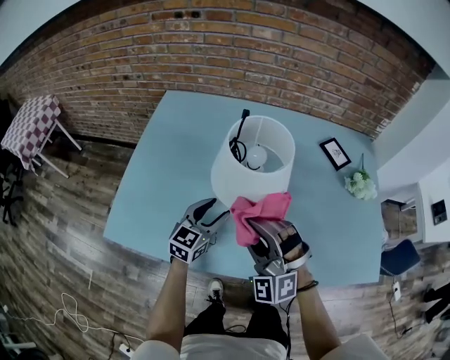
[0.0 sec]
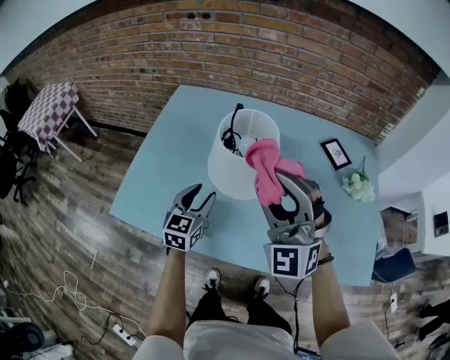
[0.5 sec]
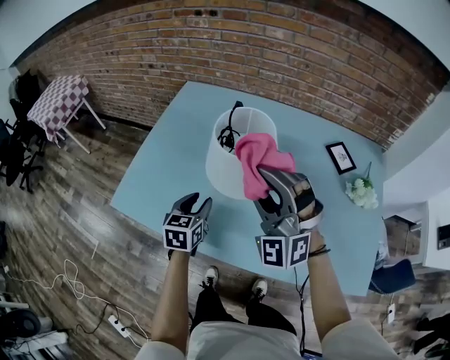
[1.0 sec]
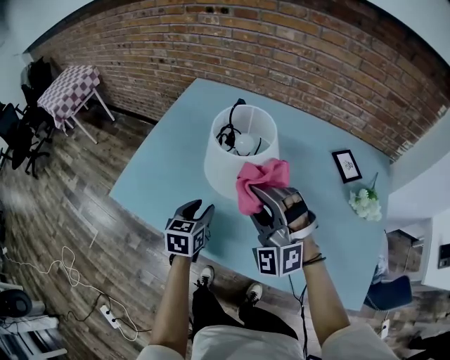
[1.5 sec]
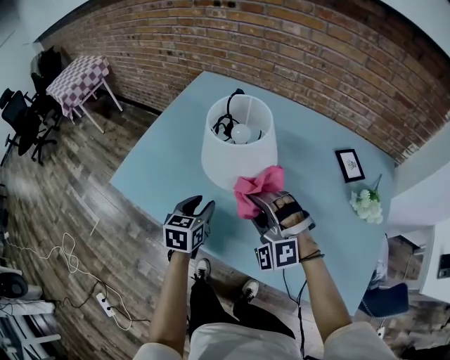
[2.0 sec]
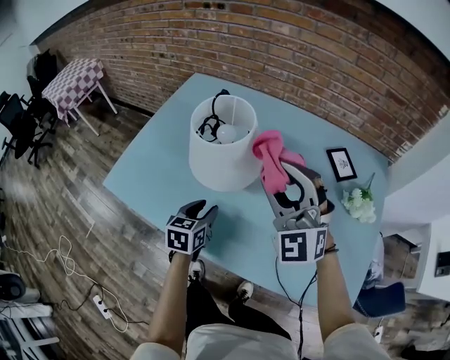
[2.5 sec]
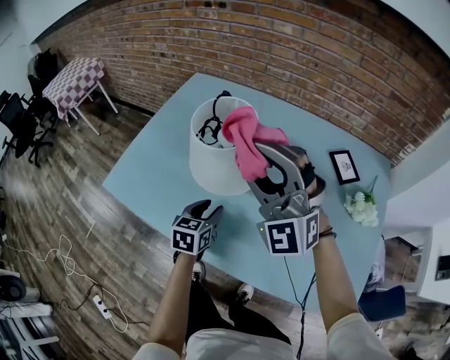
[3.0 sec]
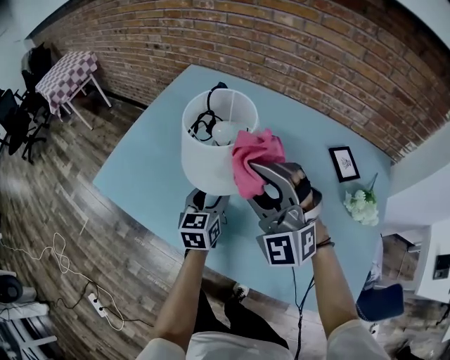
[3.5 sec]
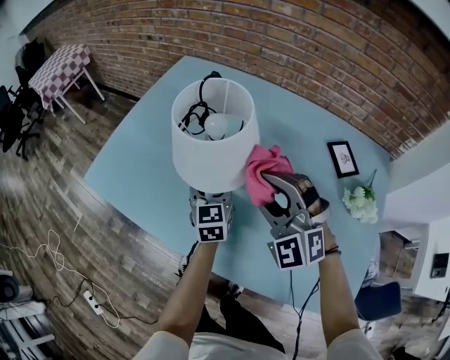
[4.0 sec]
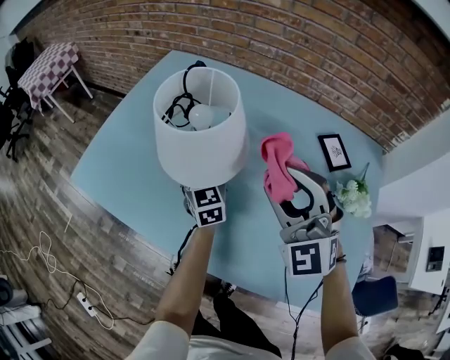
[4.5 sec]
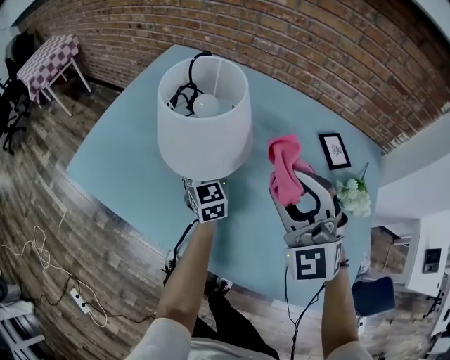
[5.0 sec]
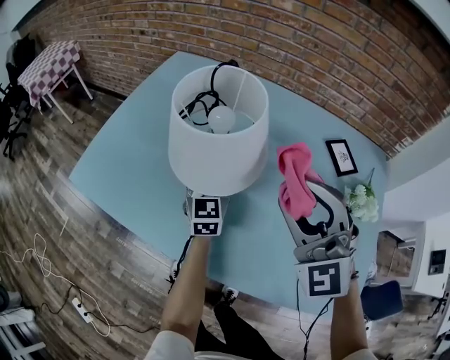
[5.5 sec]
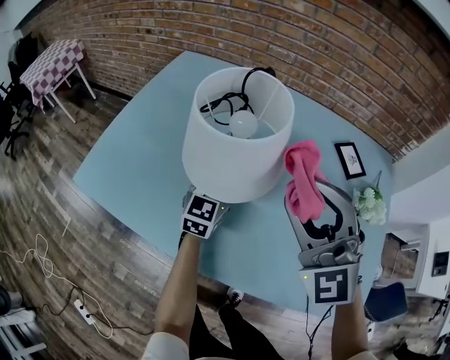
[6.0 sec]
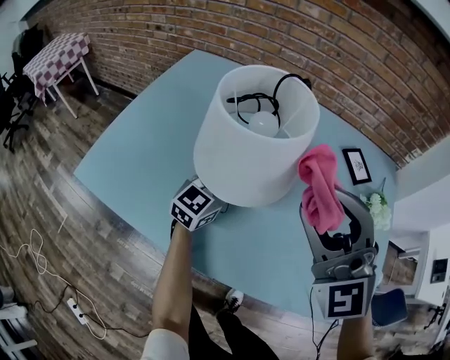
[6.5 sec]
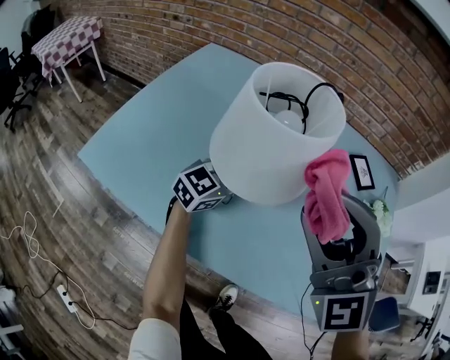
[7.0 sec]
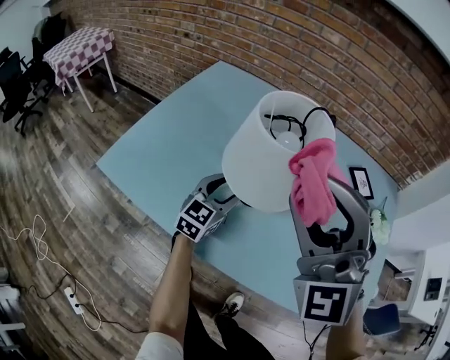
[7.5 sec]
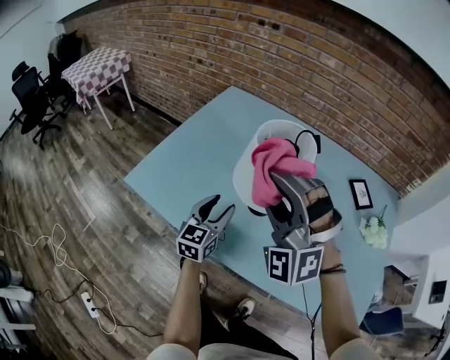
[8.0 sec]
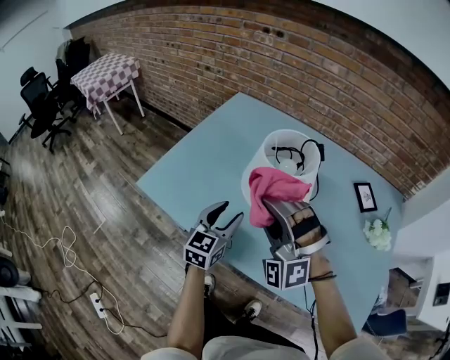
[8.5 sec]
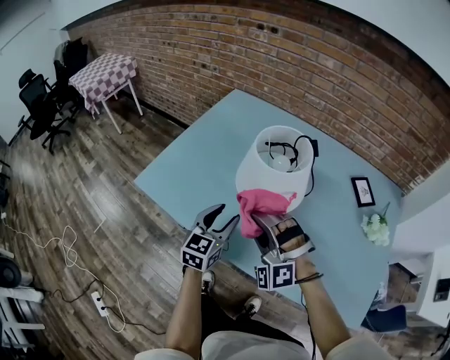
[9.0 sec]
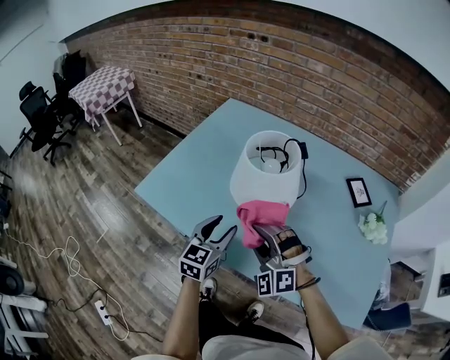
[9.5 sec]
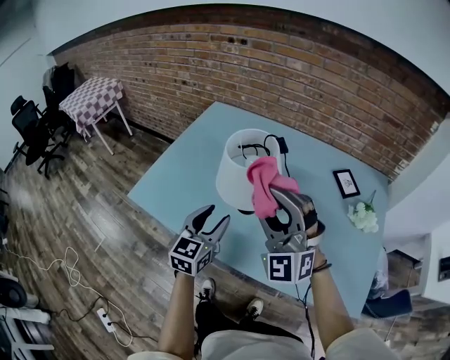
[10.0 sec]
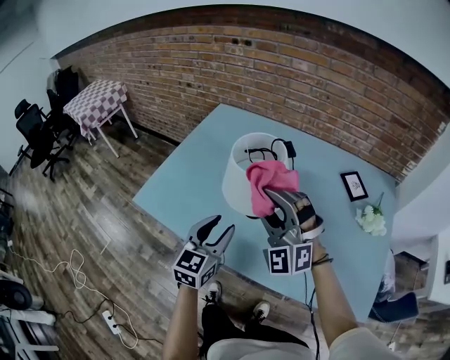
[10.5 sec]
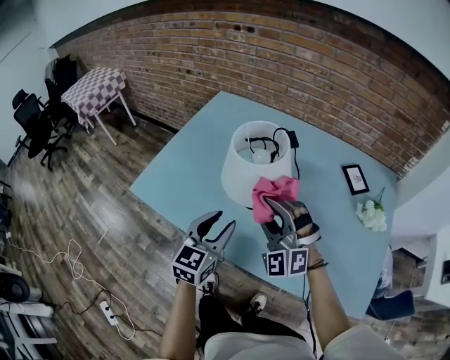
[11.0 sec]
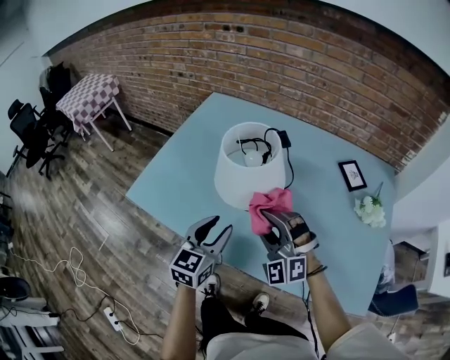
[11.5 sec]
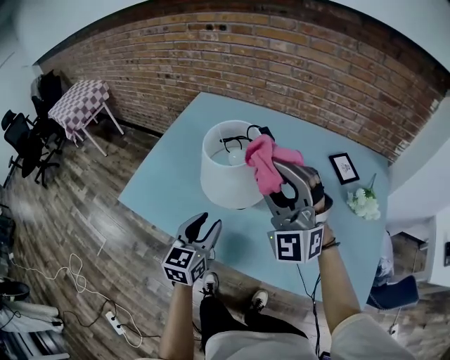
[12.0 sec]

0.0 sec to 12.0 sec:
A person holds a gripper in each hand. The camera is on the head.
0.0 sec to 2.0 sec: The right gripper reaches roughly 15 cm upward, then returns, and turns by roughly 20 degrees, while the left gripper shifts by roughly 5 cm, and turns by about 40 degrees.
2.0 sec to 4.0 sec: The right gripper goes approximately 5 cm to the right, and goes upward and returns, about 20 cm each way. Meanwhile the left gripper shifts about 15 cm to the right and forward, and swivels some 20 degrees.
4.0 sec to 6.0 sec: The left gripper turns by approximately 30 degrees. The right gripper shifts approximately 5 cm upward.
6.0 sec to 8.0 sec: The left gripper moves to the left and backward, about 15 cm. Meanwhile the right gripper heads to the left, covering about 15 cm, and changes its angle by some 30 degrees.
8.0 sec to 10.0 sec: The right gripper travels to the right by about 5 cm, goes downward and returns, approximately 15 cm each way, and changes its angle by about 20 degrees; the left gripper heads upward and backward, covering about 10 cm.
10.0 sec to 12.0 sec: The right gripper goes approximately 5 cm forward, and reaches about 15 cm downward, then returns.

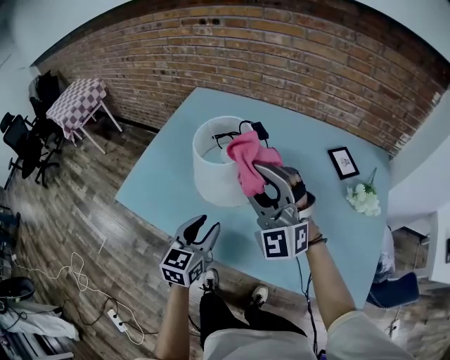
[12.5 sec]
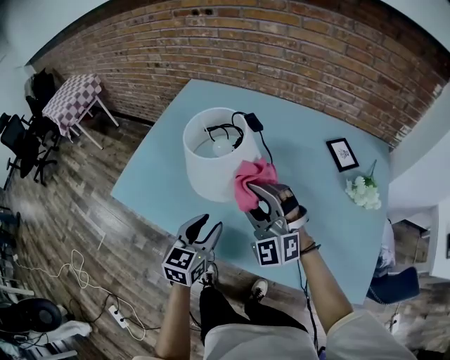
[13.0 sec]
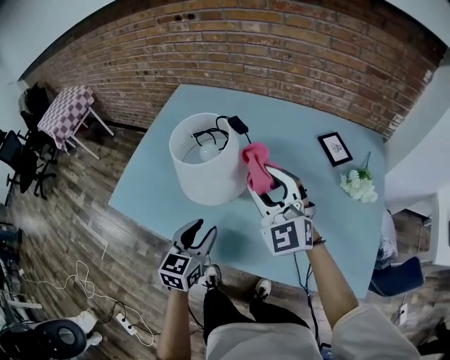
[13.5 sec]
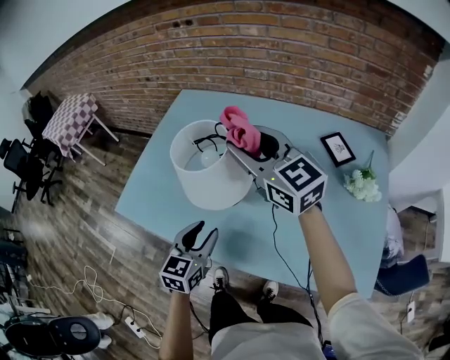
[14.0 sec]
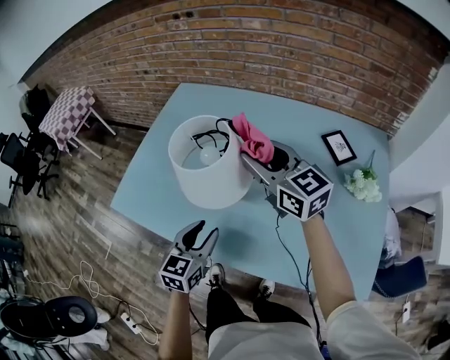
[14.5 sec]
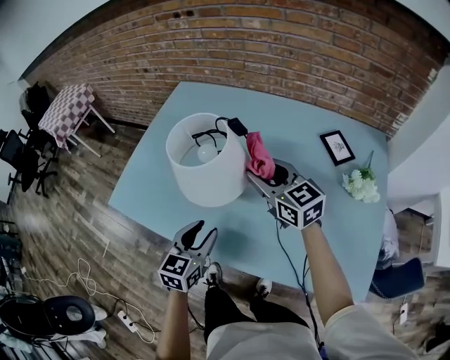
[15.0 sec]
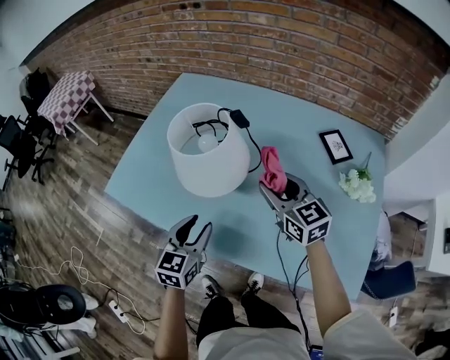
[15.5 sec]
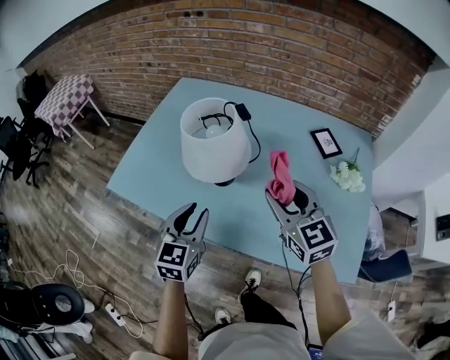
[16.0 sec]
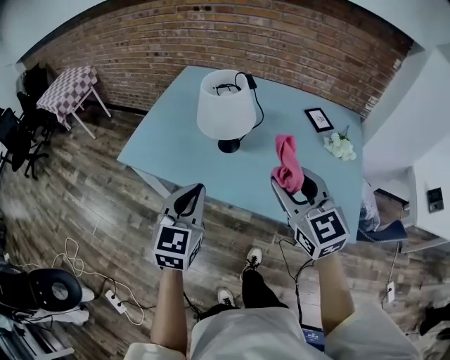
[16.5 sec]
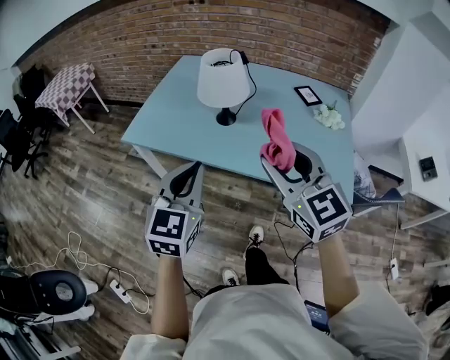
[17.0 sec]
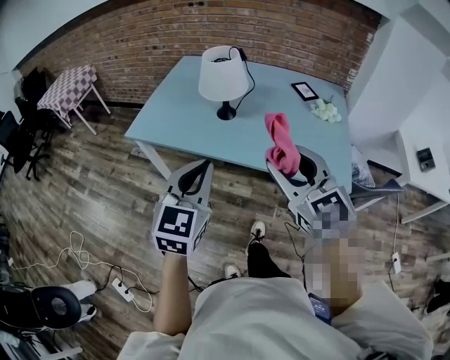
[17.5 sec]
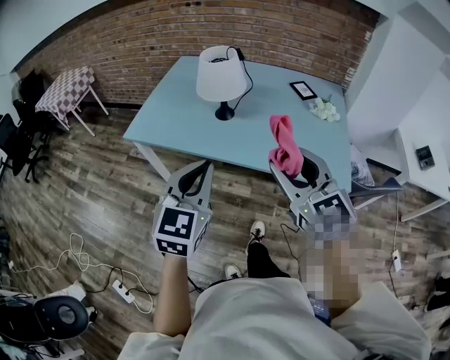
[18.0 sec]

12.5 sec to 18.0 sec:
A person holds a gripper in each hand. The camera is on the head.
12.5 sec to 14.5 sec: The right gripper moves up and down over some 15 cm, changing direction 2 times, and rotates around the line of its fingers by some 60 degrees, clockwise from behind.
14.5 sec to 16.0 sec: The right gripper is displaced backward by some 15 cm, and swivels roughly 20 degrees. The left gripper is displaced upward by approximately 5 cm.
16.0 sec to 18.0 sec: The right gripper shifts roughly 35 cm backward. The left gripper shifts some 30 cm backward and upward, and closes.

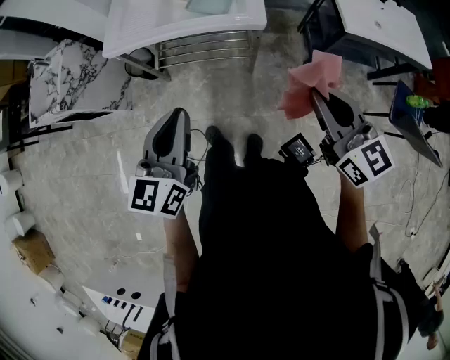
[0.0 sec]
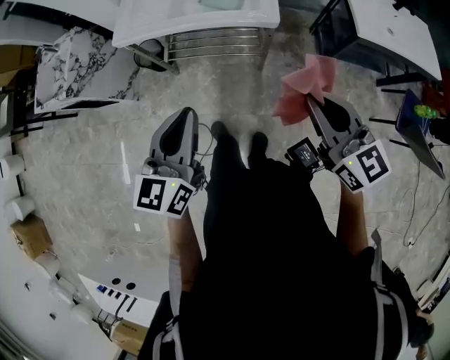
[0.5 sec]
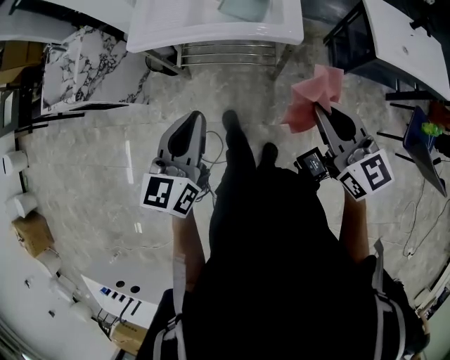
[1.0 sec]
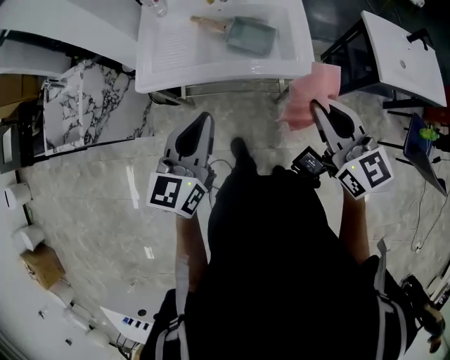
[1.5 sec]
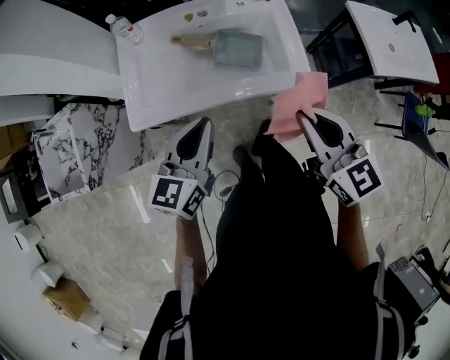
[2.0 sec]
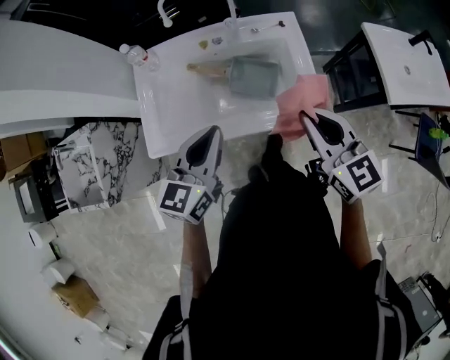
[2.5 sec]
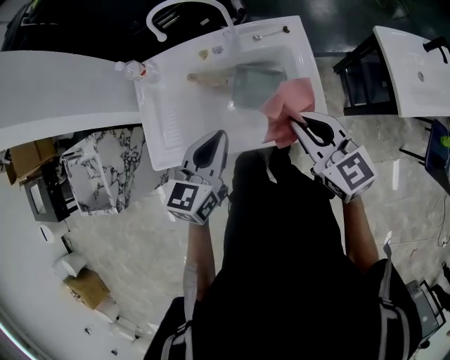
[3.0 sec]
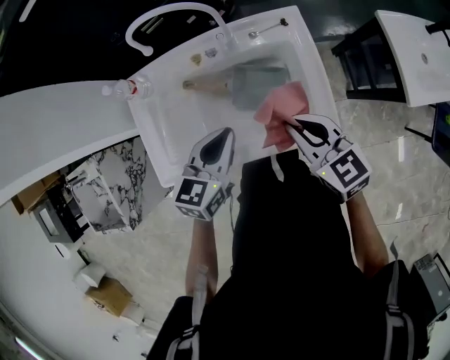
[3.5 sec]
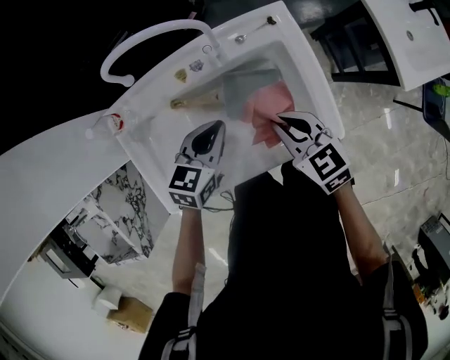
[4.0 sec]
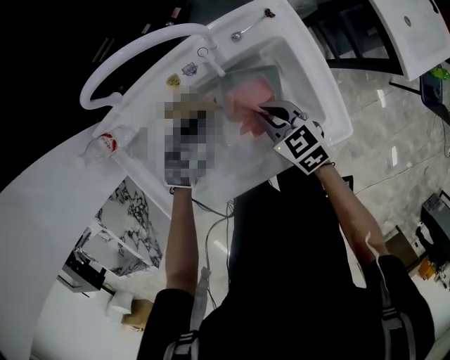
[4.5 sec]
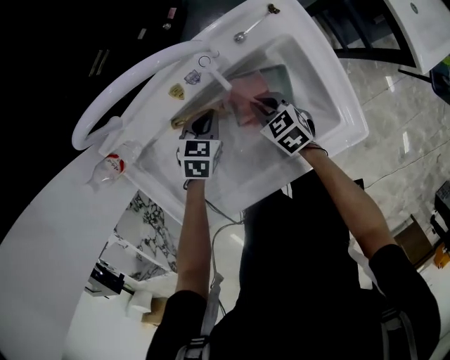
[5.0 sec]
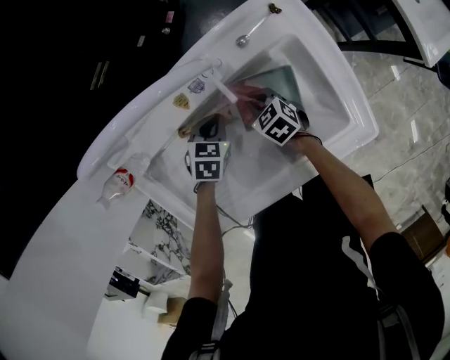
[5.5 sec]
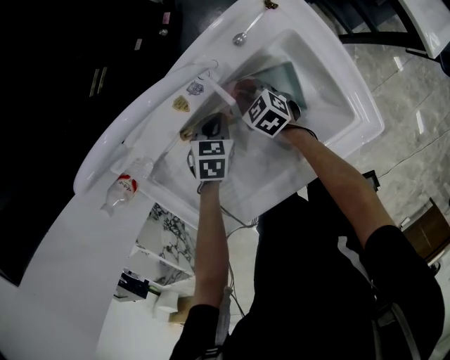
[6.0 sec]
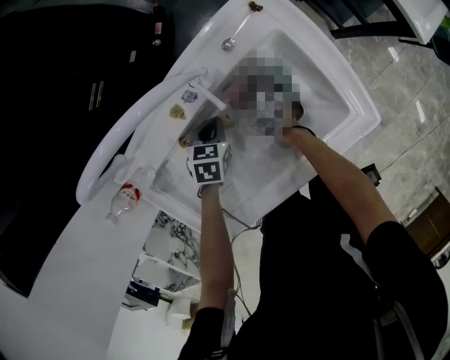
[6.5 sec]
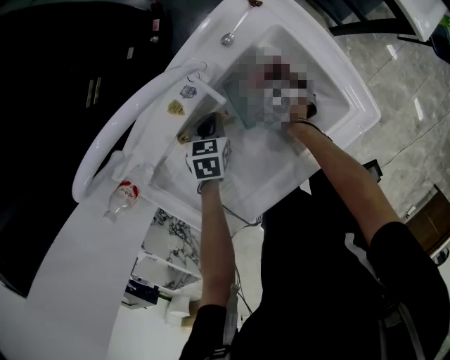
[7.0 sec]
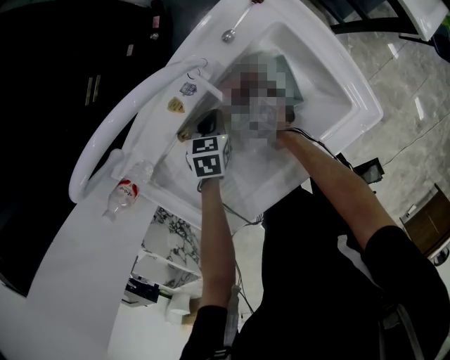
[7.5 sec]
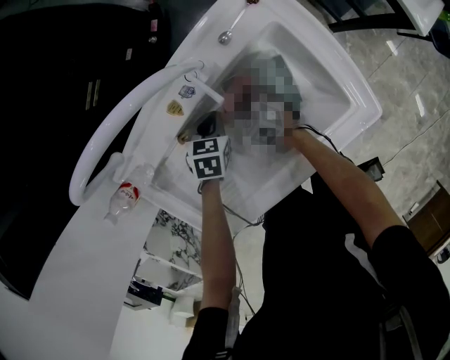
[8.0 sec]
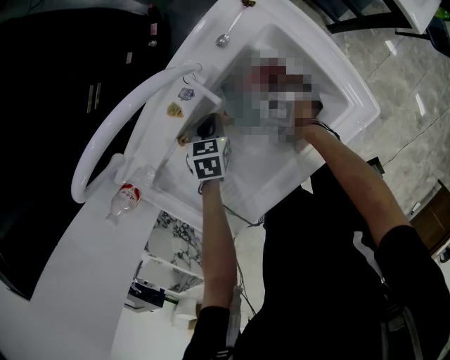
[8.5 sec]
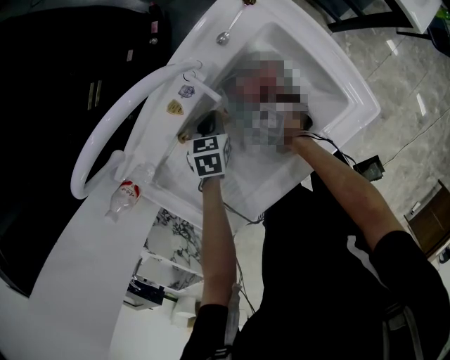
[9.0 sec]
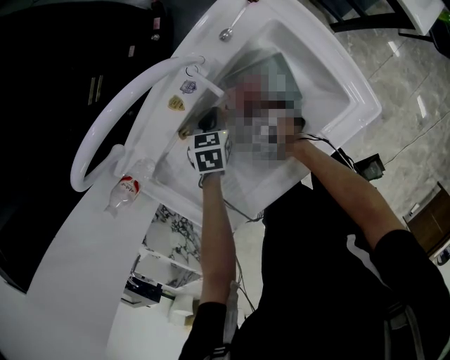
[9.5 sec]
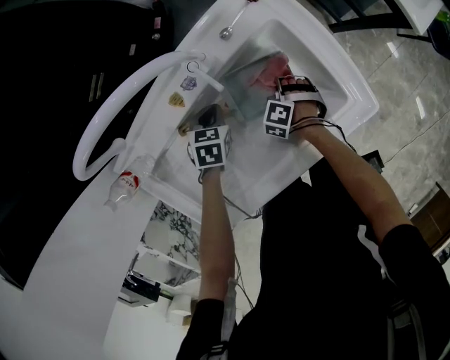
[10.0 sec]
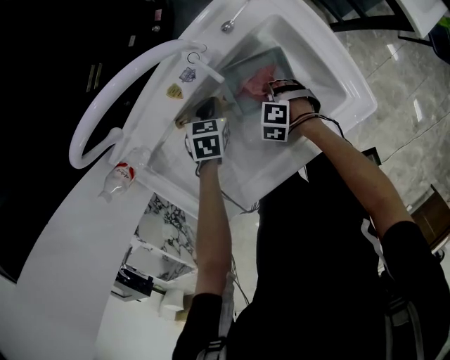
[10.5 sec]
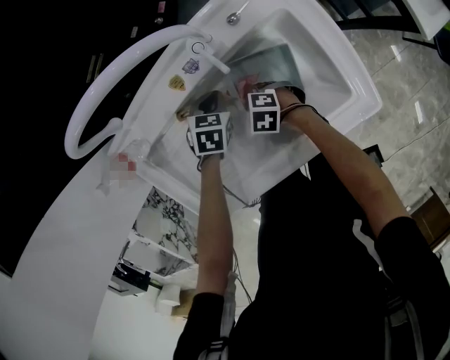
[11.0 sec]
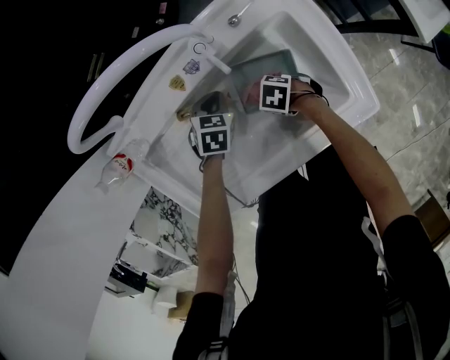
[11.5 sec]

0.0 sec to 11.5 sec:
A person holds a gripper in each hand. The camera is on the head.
0.0 sec to 2.0 sec: The left gripper moves forward, approximately 30 cm, while the right gripper shifts about 30 cm forward and to the left.
2.0 sec to 4.0 sec: Both grippers travel together forward and downward, about 35 cm. The right gripper rotates some 20 degrees, while the left gripper rotates approximately 30 degrees.
4.0 sec to 6.0 sec: The right gripper travels downward and forward by roughly 30 cm, while the left gripper moves downward, roughly 20 cm, and rotates about 30 degrees.
6.0 sec to 7.5 sec: The right gripper swivels approximately 20 degrees.
7.5 sec to 9.5 sec: The right gripper shifts about 10 cm backward, moves some 10 cm to the right and comes back, and changes its angle by roughly 30 degrees.
9.5 sec to 11.5 sec: The right gripper swivels approximately 40 degrees.
